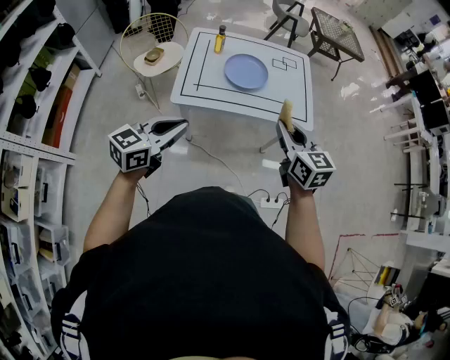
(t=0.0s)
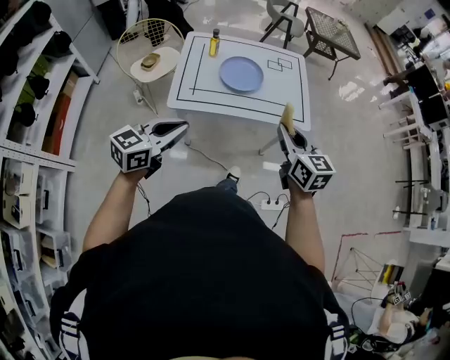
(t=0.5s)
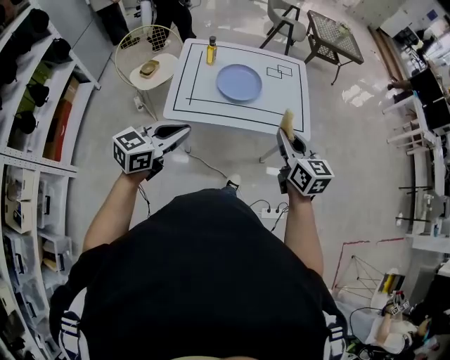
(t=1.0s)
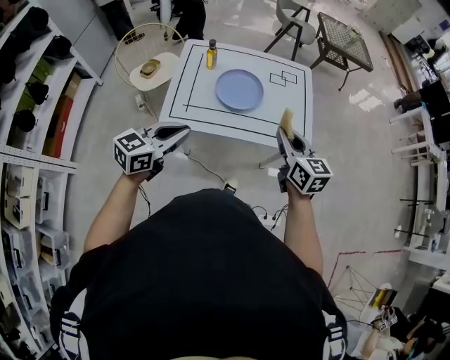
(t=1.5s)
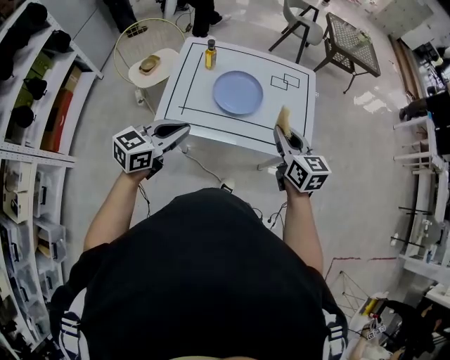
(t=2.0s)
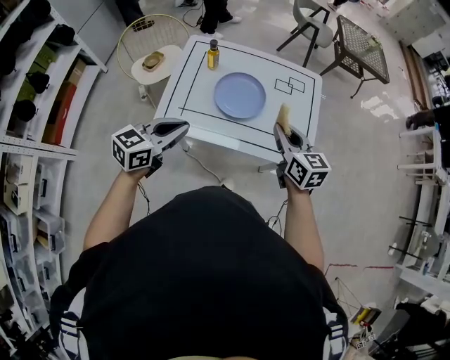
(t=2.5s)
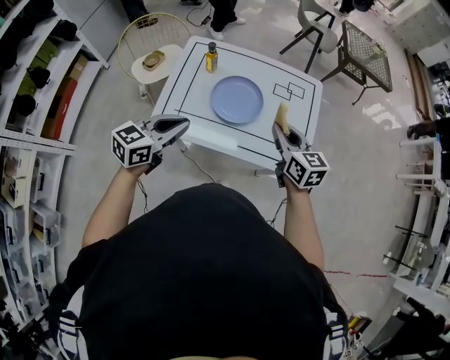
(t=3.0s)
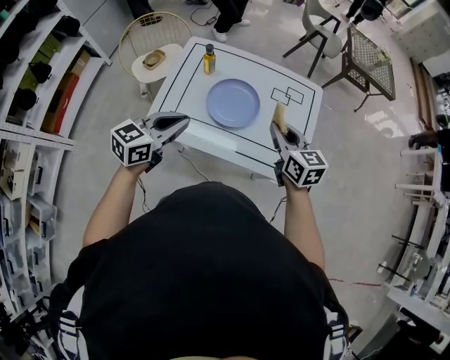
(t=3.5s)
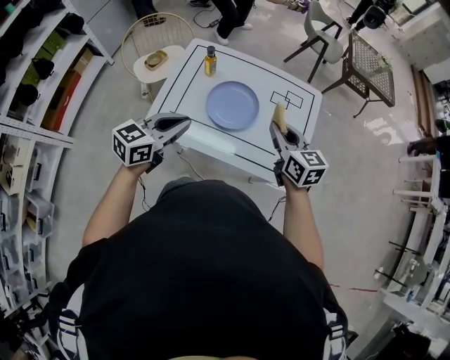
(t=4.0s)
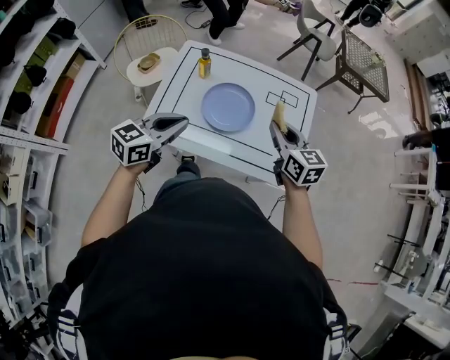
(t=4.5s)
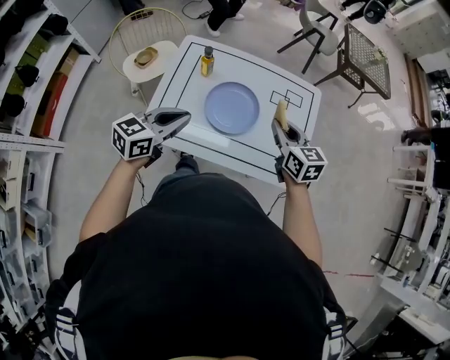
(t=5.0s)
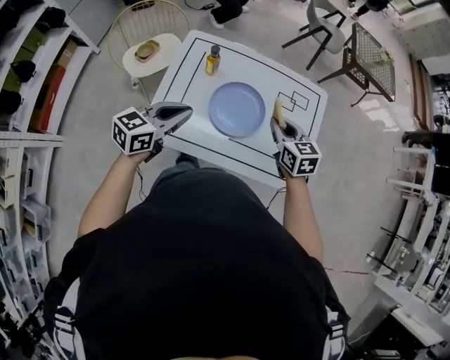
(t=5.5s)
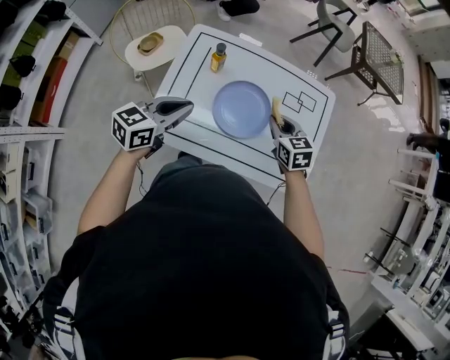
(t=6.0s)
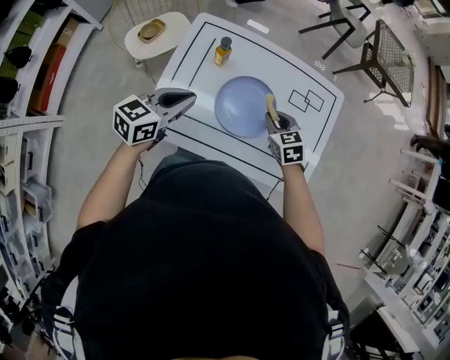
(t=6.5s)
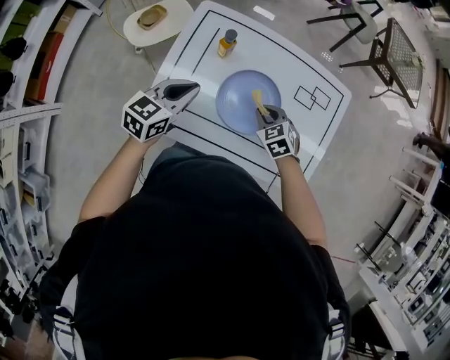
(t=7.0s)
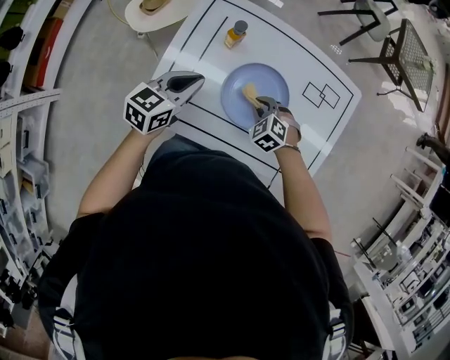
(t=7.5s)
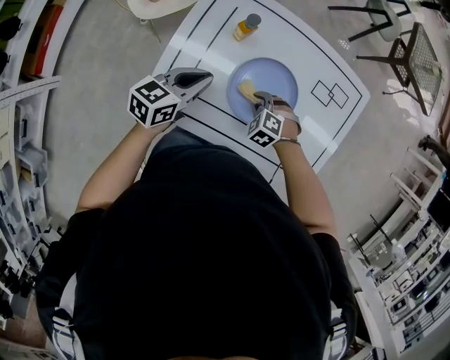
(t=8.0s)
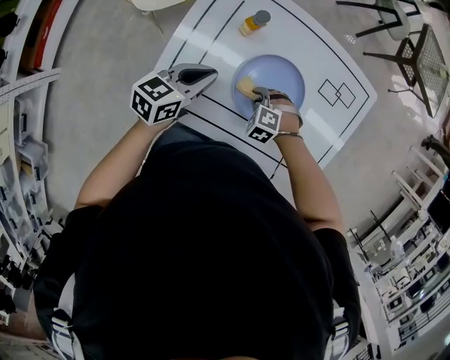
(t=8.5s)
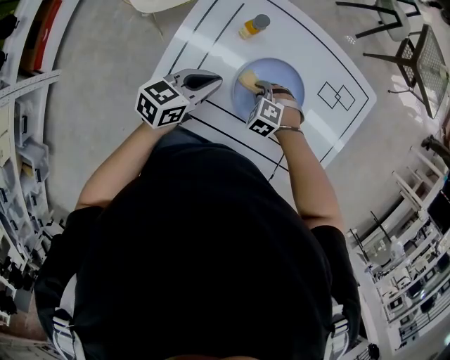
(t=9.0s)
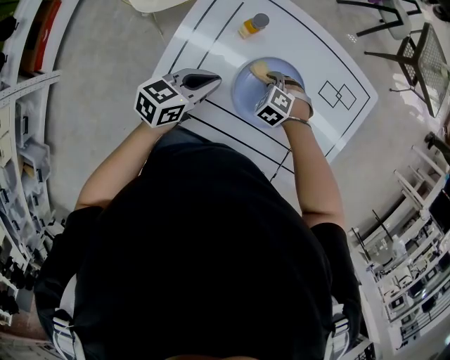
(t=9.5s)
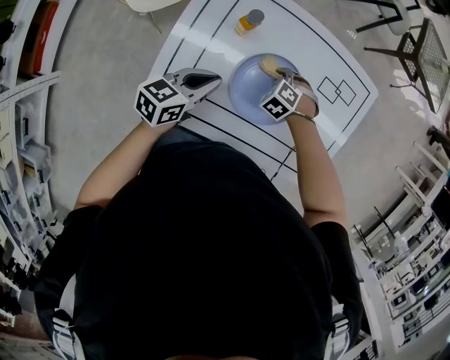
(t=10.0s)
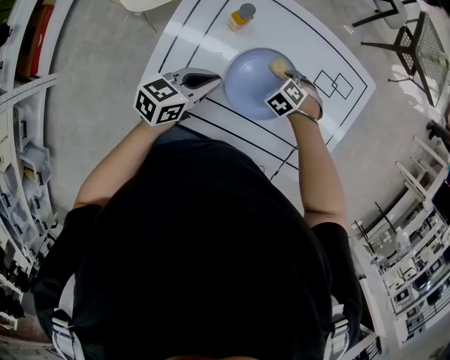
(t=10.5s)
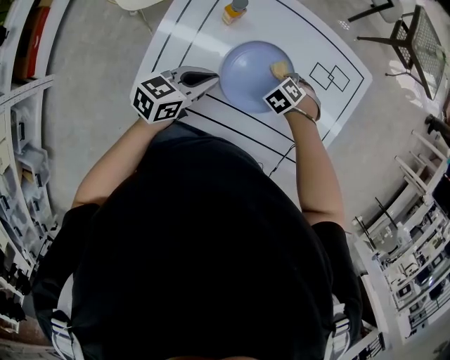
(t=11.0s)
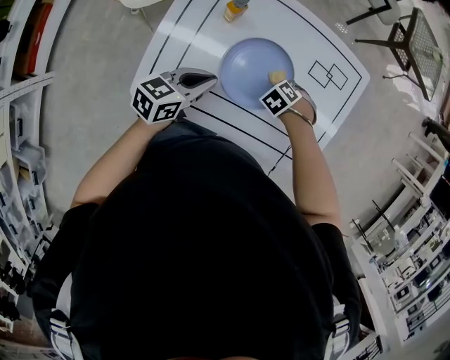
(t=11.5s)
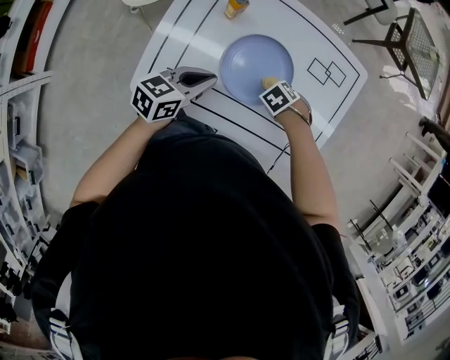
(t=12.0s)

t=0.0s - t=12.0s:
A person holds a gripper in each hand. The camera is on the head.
t=0.0s - t=2.0s: The grippers both shift forward by roughly 20 cm.
t=2.0s - t=4.0s: Both grippers travel together forward, some 10 cm.
t=4.0s - t=6.0s: The right gripper heads downward, forward and to the left, covering approximately 20 cm, and swivels some 20 degrees; the left gripper heads forward, to the left and downward, covering about 15 cm.
t=6.0s - t=8.0s: The left gripper travels downward and forward by roughly 15 cm. Meanwhile the right gripper is displaced downward and to the left by roughly 20 cm, and rotates around the line of its fingers by approximately 50 degrees, counterclockwise from behind.
t=8.0s - t=10.0s: The right gripper ends up approximately 10 cm from where it was.
t=10.0s - t=12.0s: The right gripper shifts by roughly 15 cm, and changes its angle by some 30 degrees. The left gripper ends up approximately 5 cm from where it was.

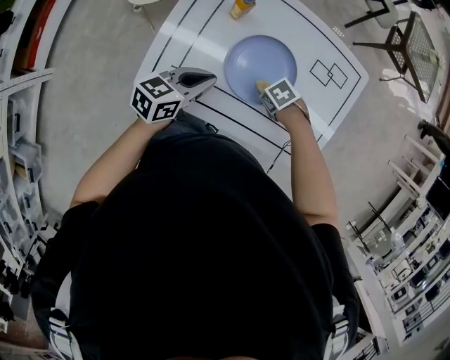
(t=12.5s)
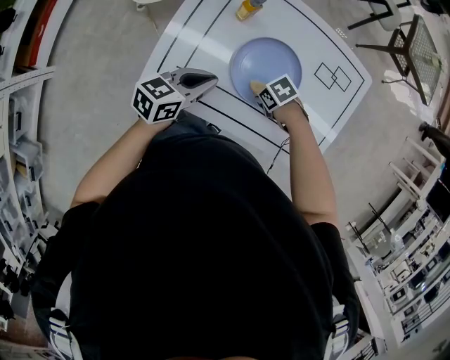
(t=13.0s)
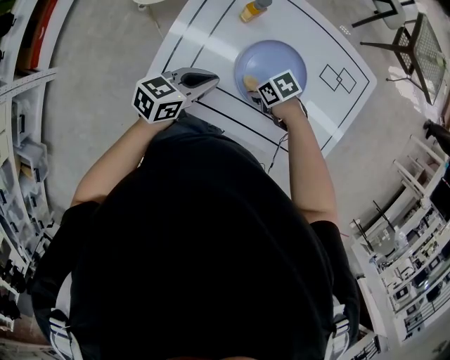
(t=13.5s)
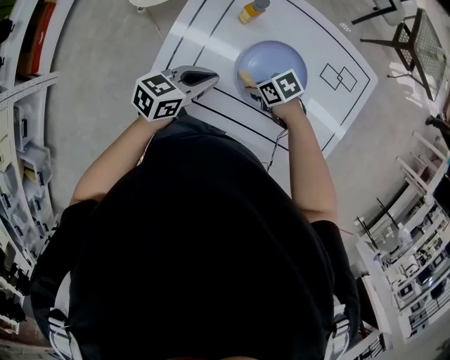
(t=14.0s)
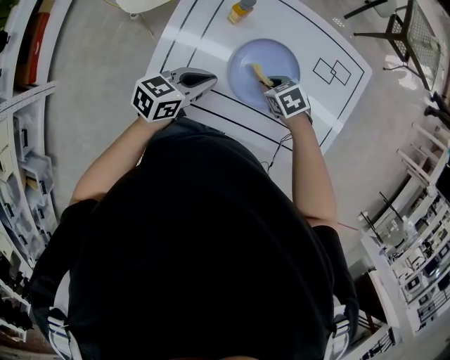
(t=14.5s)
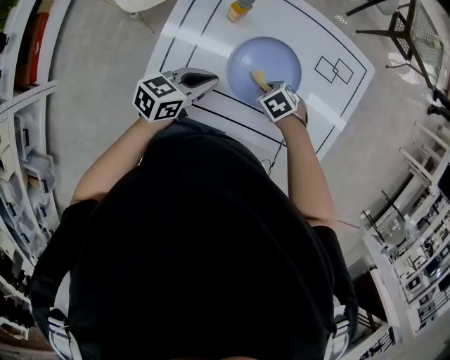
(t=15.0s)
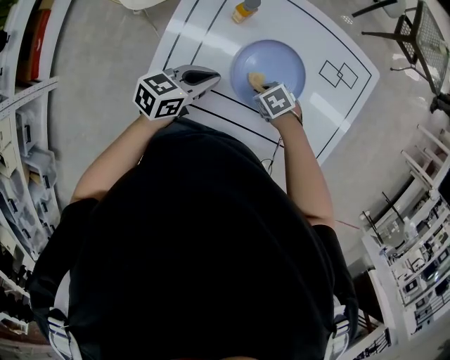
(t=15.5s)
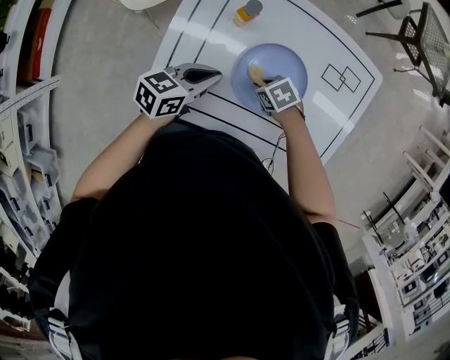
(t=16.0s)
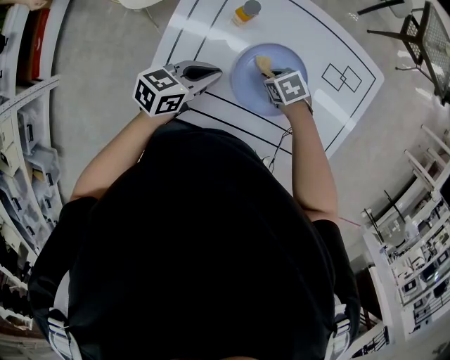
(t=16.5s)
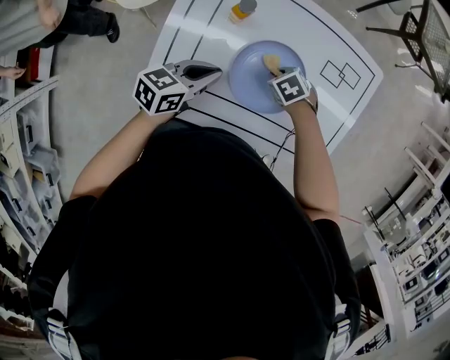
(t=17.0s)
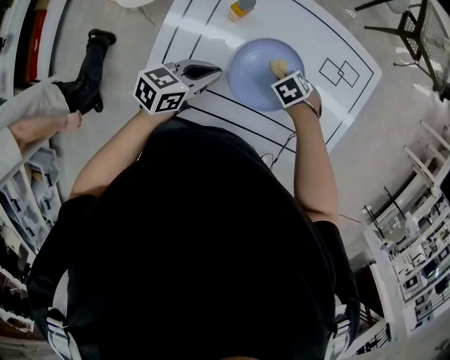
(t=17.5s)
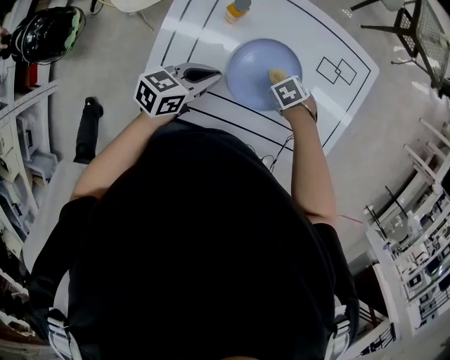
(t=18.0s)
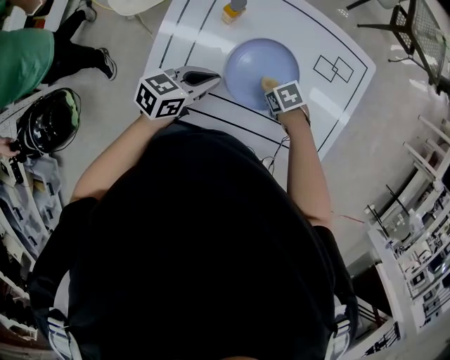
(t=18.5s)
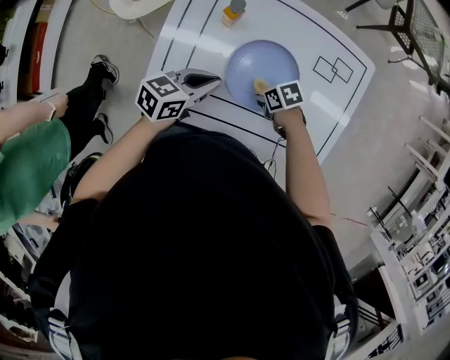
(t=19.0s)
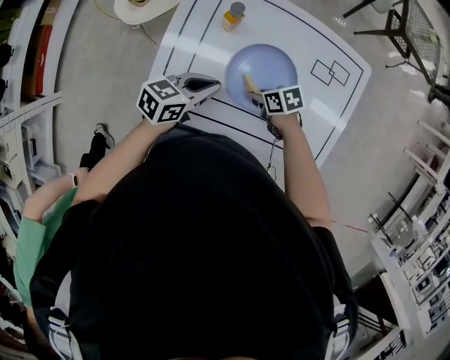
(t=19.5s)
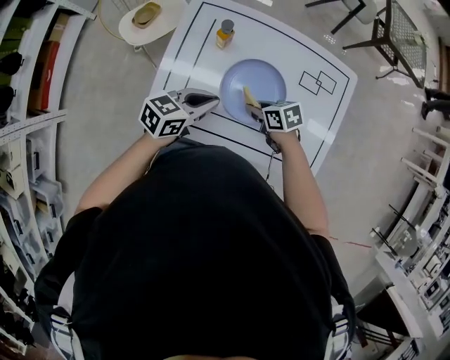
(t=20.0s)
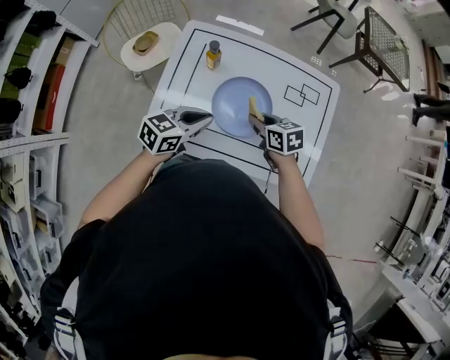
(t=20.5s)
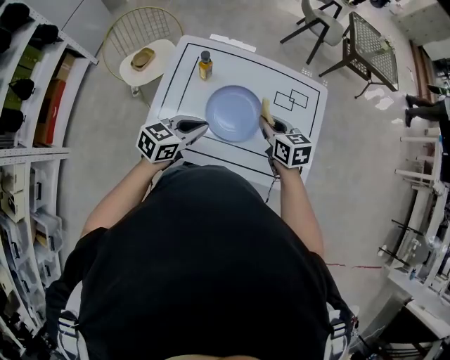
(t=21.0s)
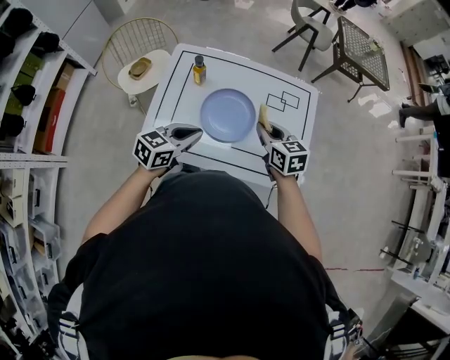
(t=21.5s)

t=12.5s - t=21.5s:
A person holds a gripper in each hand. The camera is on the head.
t=12.5s - t=14.5s: The right gripper moves some 10 cm, and turns by some 20 degrees.
t=14.5s - t=17.0s: The right gripper heads downward, covering roughly 5 cm.
t=17.0s - t=19.5s: The right gripper changes place by roughly 10 cm, and swivels roughly 40 degrees.
t=19.5s - t=21.5s: The left gripper travels upward by about 10 cm. Meanwhile the right gripper moves upward, approximately 25 cm, and turns by about 50 degrees.

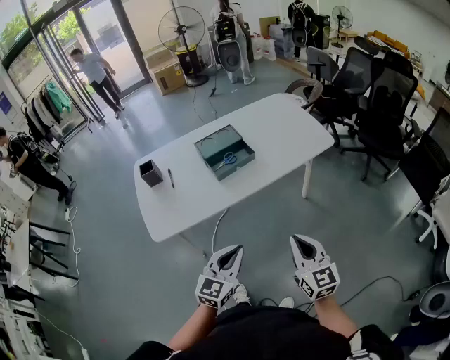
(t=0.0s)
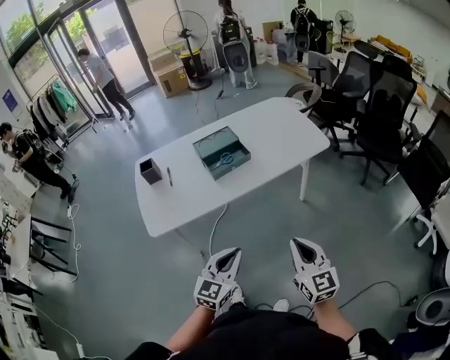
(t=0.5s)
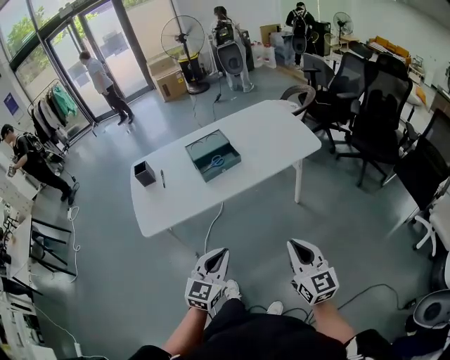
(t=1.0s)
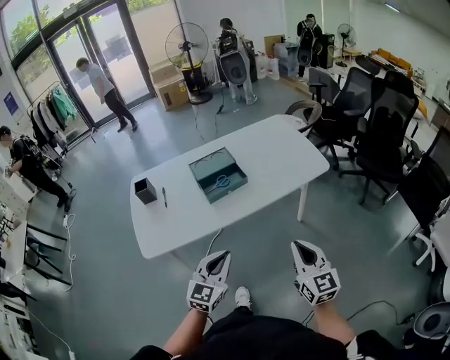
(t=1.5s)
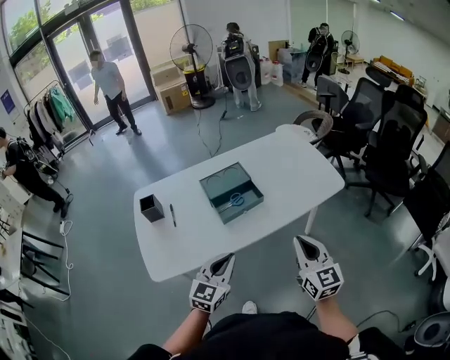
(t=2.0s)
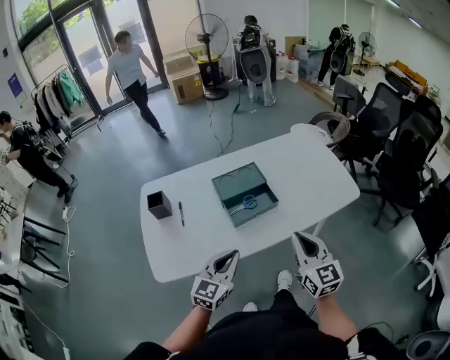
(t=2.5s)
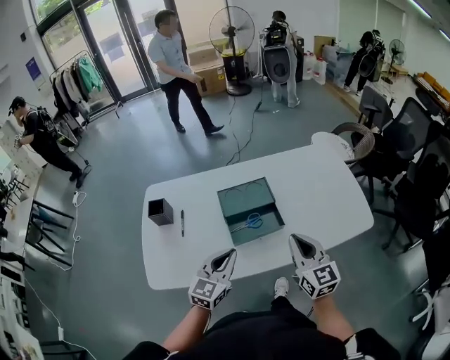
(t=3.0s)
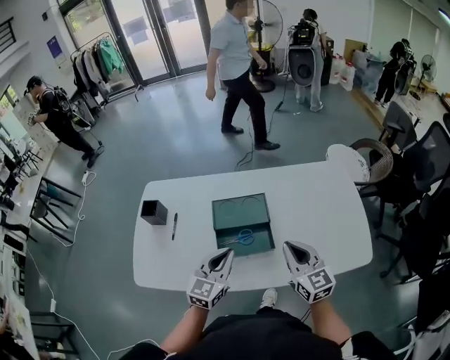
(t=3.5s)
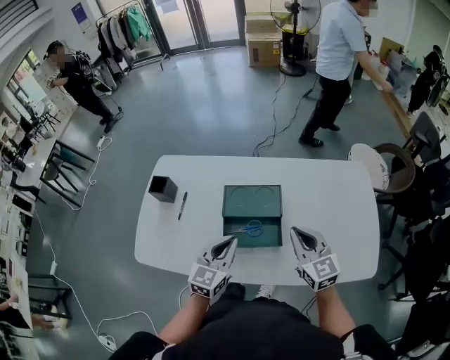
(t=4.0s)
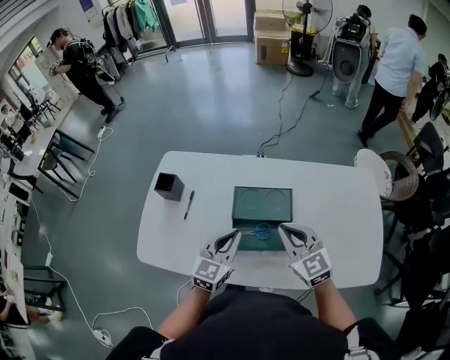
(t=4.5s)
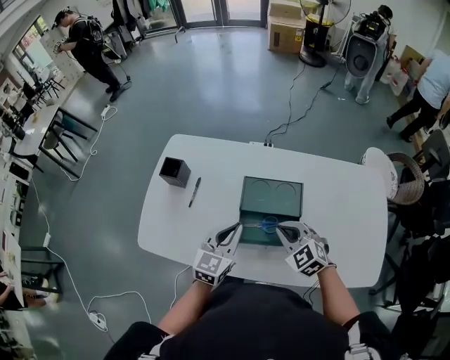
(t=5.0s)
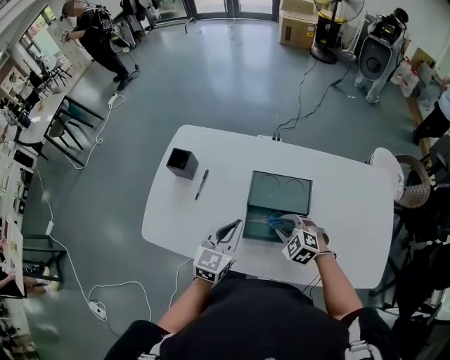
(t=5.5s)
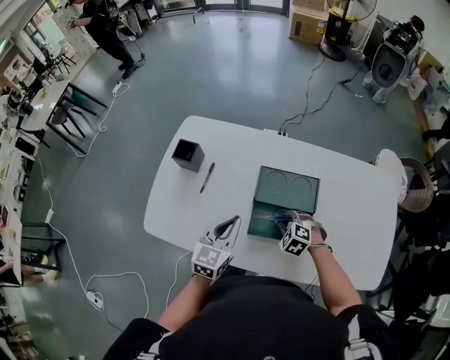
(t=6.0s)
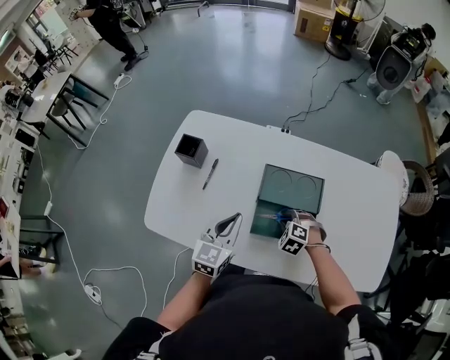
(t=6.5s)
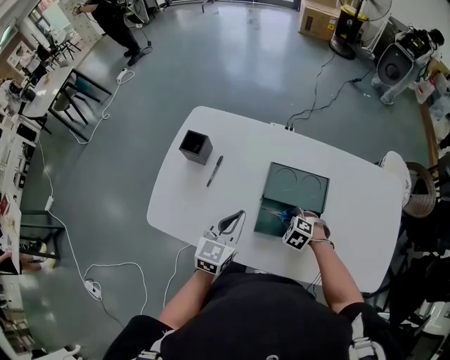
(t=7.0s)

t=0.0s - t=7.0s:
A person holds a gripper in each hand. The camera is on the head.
t=0.0s - t=2.0s: Both grippers travel together forward, approximately 15 cm.
t=2.0s - t=3.5s: The left gripper ends up about 25 cm from where it was, and changes its angle by roughly 20 degrees; the right gripper ends up some 30 cm from where it was, and swivels about 30 degrees.
t=3.5s - t=5.0s: The right gripper moves to the left, downward and forward, roughly 20 cm, and turns by roughly 50 degrees. The left gripper heads forward and to the left, covering some 10 cm.
t=5.0s - t=7.0s: The left gripper is displaced to the left by some 5 cm. The right gripper shifts some 15 cm downward, and angles its fingers downward, by about 30 degrees.
